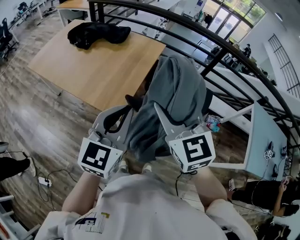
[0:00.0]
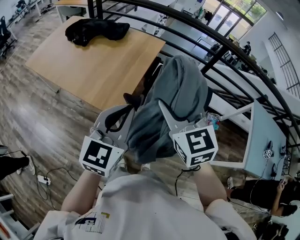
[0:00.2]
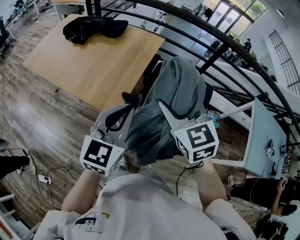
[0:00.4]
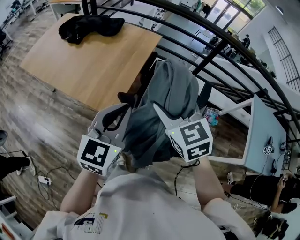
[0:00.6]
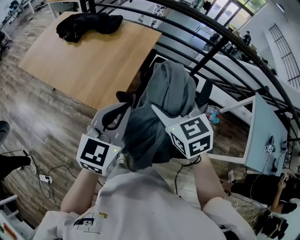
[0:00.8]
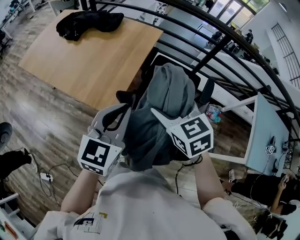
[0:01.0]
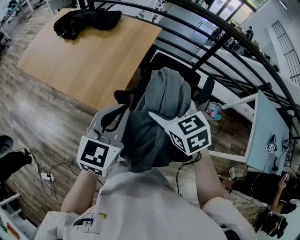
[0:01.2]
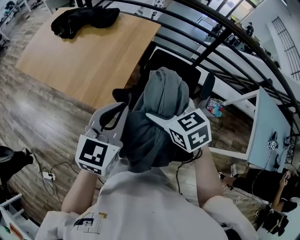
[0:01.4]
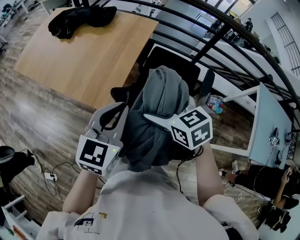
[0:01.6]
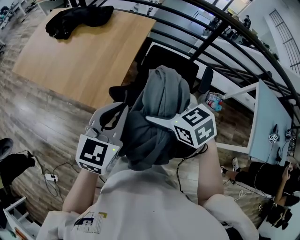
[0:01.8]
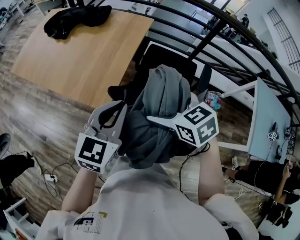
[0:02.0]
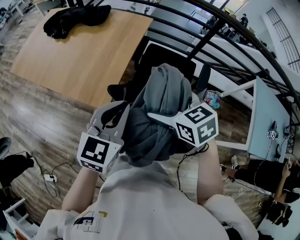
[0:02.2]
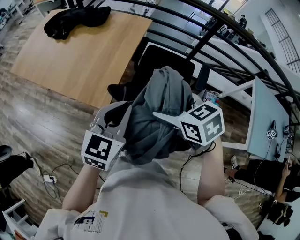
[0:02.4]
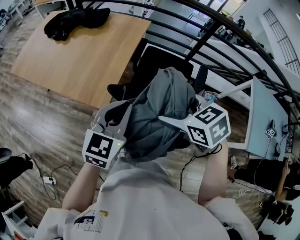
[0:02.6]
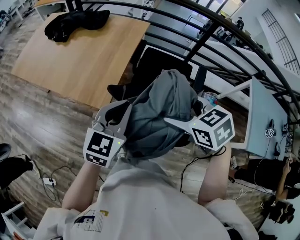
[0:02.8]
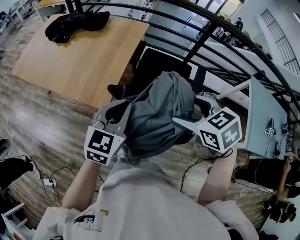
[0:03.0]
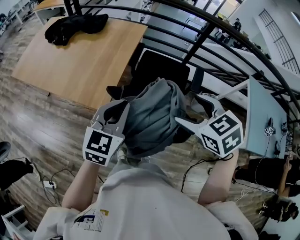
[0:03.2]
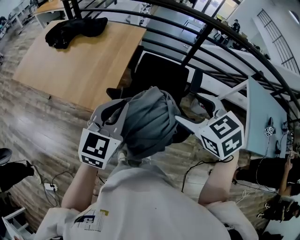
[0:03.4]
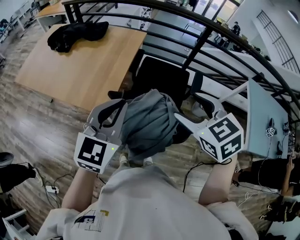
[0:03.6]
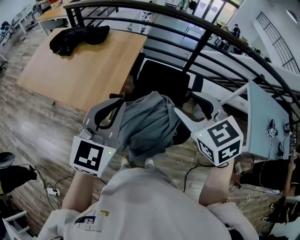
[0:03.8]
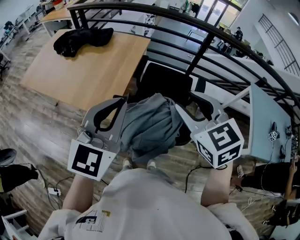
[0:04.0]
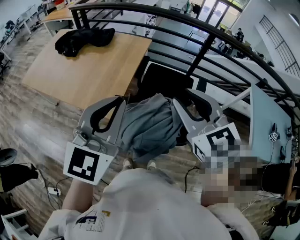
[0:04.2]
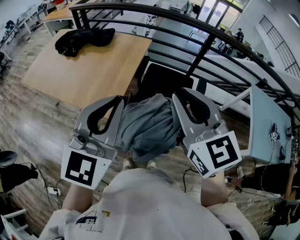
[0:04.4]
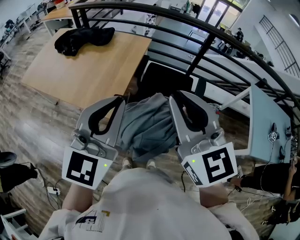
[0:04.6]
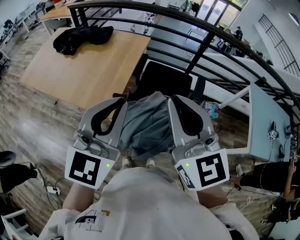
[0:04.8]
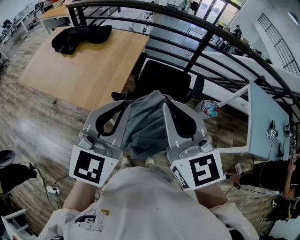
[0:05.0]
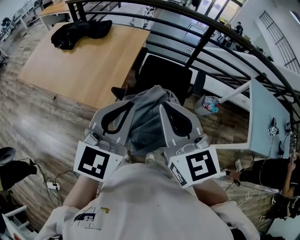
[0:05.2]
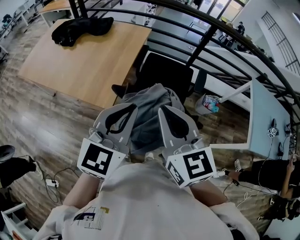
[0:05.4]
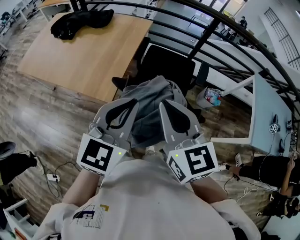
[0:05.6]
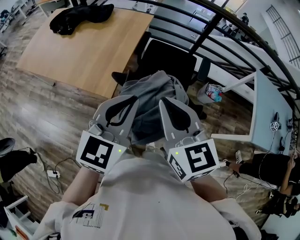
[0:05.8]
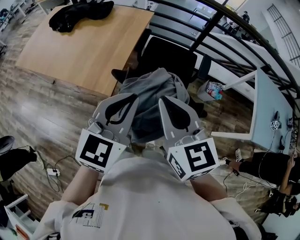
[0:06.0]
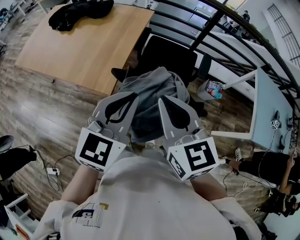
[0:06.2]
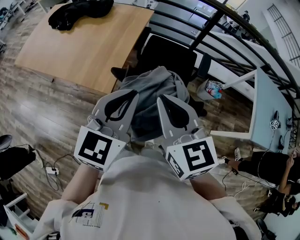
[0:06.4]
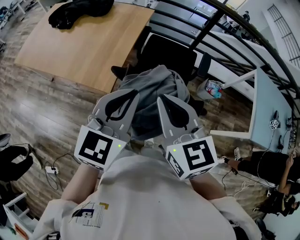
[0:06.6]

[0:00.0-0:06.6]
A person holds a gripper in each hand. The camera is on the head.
0.0 to 1.6 s: The left gripper shifts about 15 cm downward, to the right and forward, while the right gripper travels downward and to the right by roughly 20 cm, changes its angle by roughly 30 degrees, and opens its fingers.
1.6 to 3.2 s: The right gripper shifts approximately 15 cm backward, to the right and upward.
3.2 to 5.0 s: The right gripper travels upward and to the left by roughly 15 cm, points its fingers roughly 40 degrees further upward, and closes up. The left gripper goes about 15 cm upward and backward.
5.0 to 6.6 s: Both grippers travel together downward, approximately 10 cm.

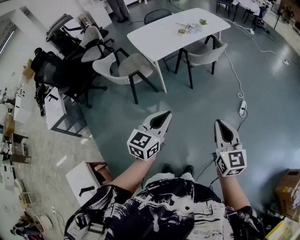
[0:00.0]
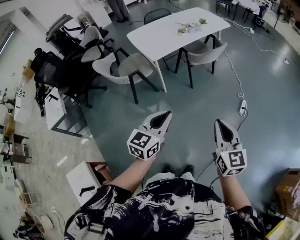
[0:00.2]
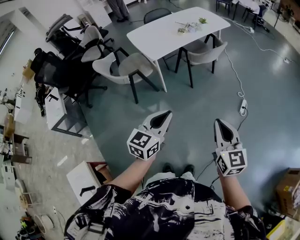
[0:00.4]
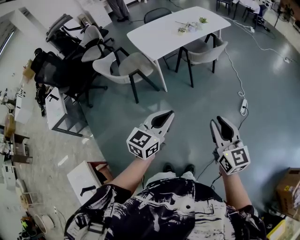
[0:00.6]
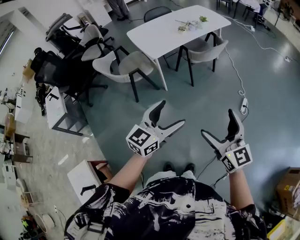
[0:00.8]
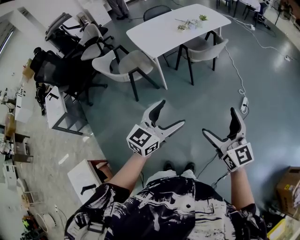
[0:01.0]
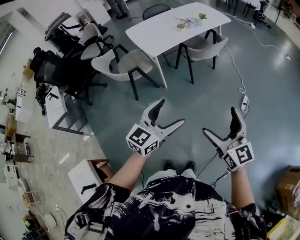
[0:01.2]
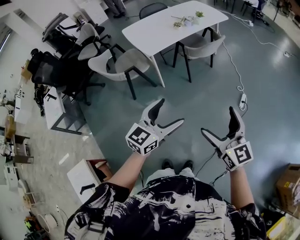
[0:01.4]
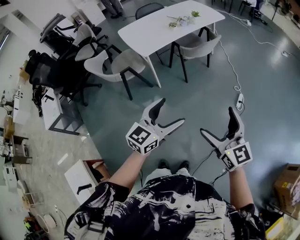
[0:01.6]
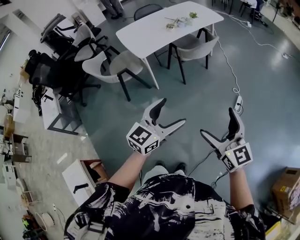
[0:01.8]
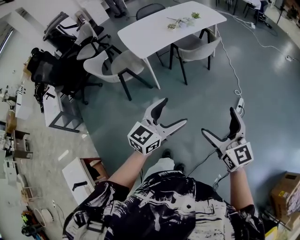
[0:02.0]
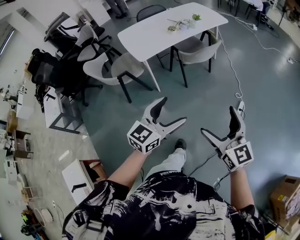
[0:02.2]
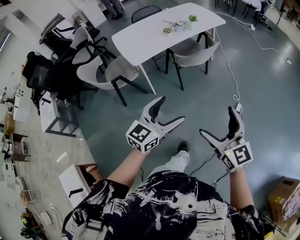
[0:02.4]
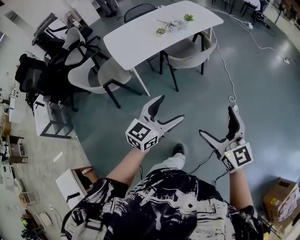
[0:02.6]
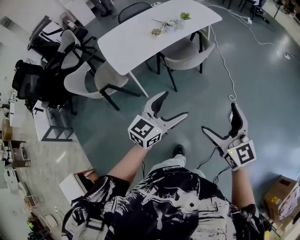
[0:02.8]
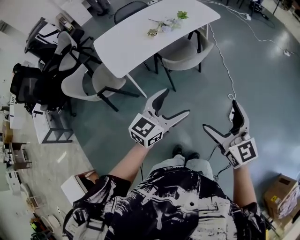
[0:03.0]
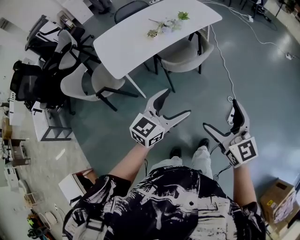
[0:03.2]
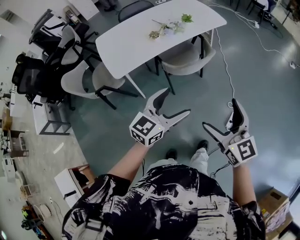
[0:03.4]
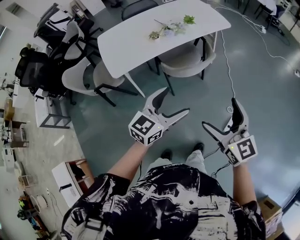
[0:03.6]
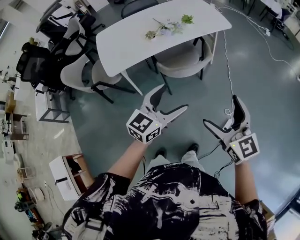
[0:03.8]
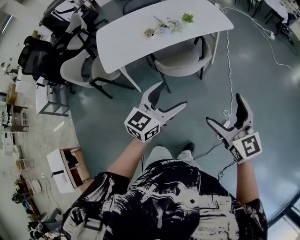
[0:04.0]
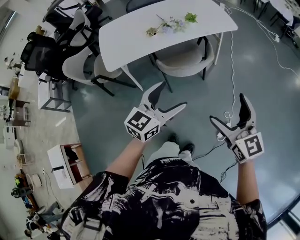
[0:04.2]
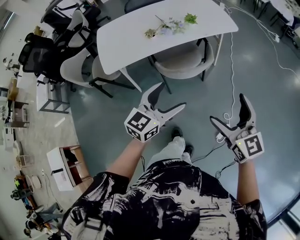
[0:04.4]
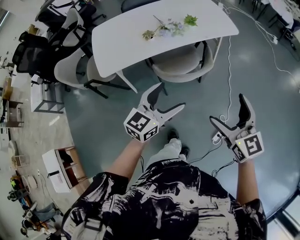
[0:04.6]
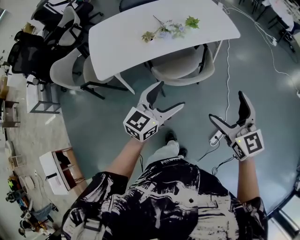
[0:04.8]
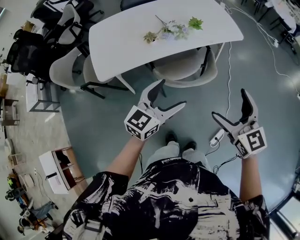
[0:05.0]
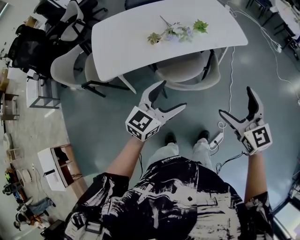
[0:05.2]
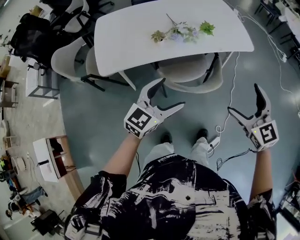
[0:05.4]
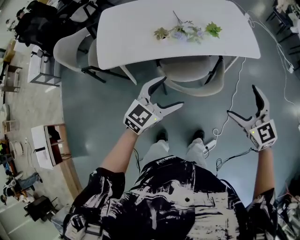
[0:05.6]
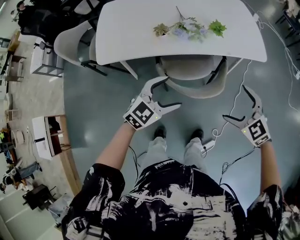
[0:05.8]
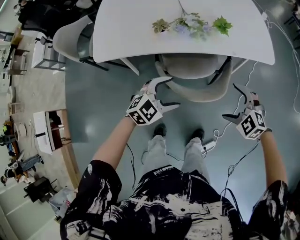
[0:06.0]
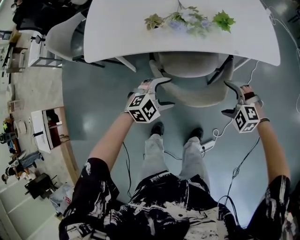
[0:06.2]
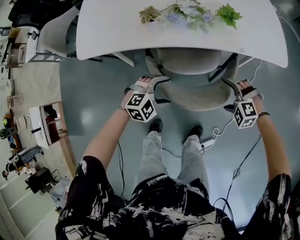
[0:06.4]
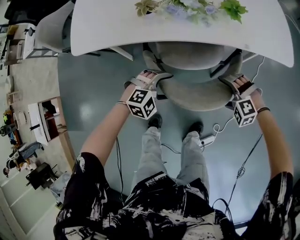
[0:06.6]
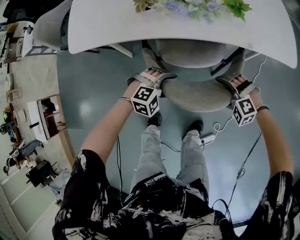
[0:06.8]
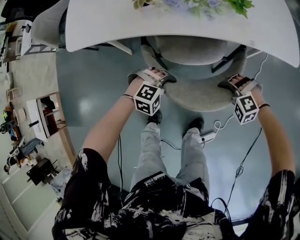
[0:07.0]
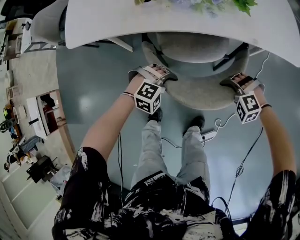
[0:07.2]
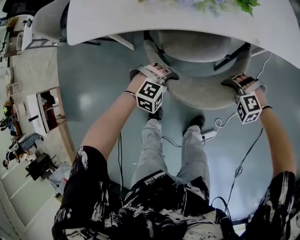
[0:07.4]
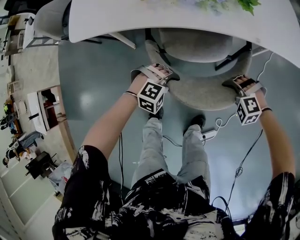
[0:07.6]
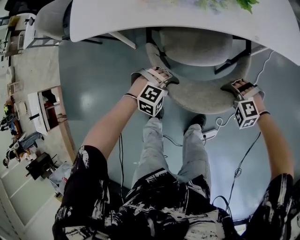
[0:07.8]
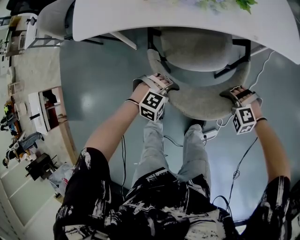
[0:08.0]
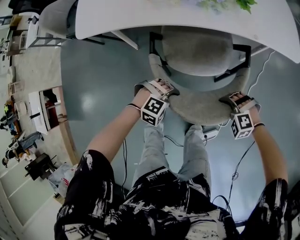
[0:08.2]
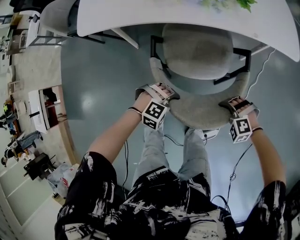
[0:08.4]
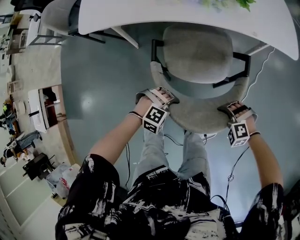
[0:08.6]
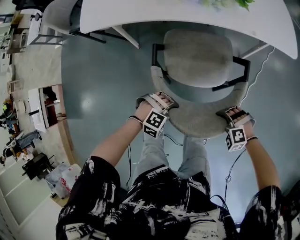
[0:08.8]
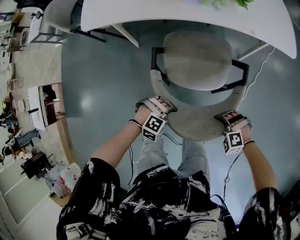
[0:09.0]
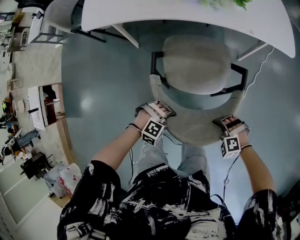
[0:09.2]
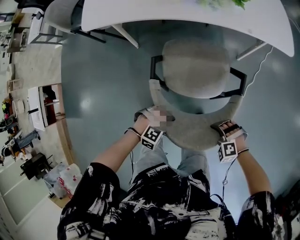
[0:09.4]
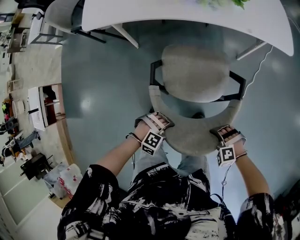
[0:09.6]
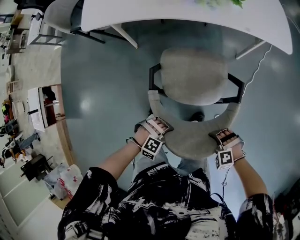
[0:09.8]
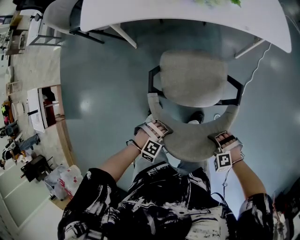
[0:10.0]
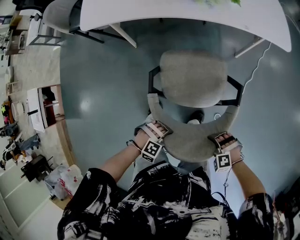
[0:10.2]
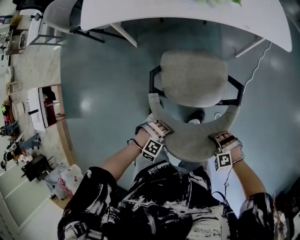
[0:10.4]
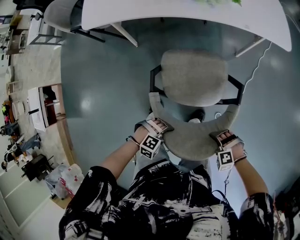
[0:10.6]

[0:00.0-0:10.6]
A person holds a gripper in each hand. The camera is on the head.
0.0 to 1.6 s: The right gripper opens up; the left gripper shifts roughly 10 cm to the right, and opens up.
1.6 to 3.0 s: The left gripper shifts some 35 cm forward and to the right, while the right gripper heads forward, covering some 35 cm.
3.0 to 4.6 s: The grippers both shift forward and to the right by about 30 cm.
4.6 to 6.0 s: The grippers both shift forward and downward by about 30 cm. The left gripper turns by about 30 degrees, while the right gripper angles its fingers downward, by roughly 40 degrees.
6.0 to 7.6 s: The grippers both shift downward by about 25 cm. The right gripper changes its angle by roughly 30 degrees, and closes its fingers. Meanwhile the left gripper swivels some 40 degrees, and closes.
7.6 to 9.0 s: The left gripper changes place by about 20 cm. The right gripper ends up some 20 cm from where it was.
9.0 to 10.6 s: The left gripper moves some 15 cm. Meanwhile the right gripper ends up roughly 15 cm from where it was.

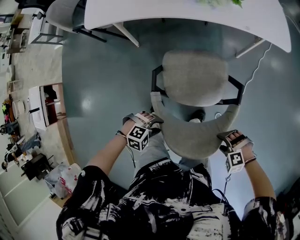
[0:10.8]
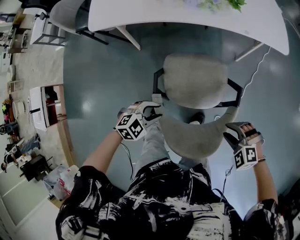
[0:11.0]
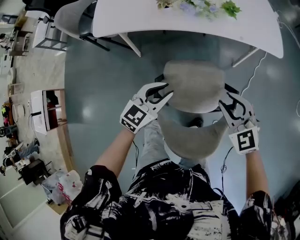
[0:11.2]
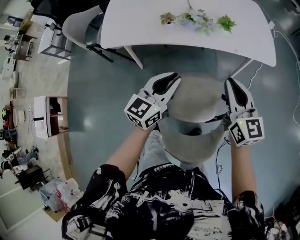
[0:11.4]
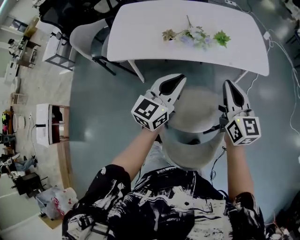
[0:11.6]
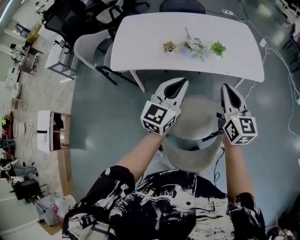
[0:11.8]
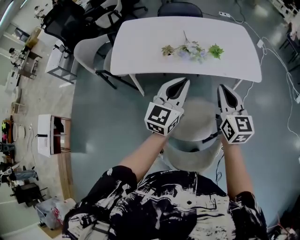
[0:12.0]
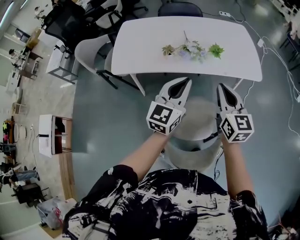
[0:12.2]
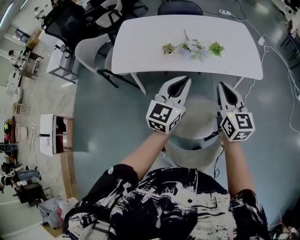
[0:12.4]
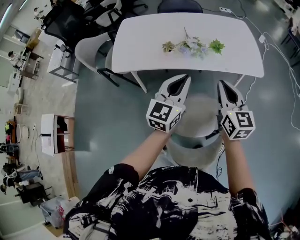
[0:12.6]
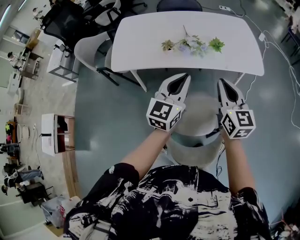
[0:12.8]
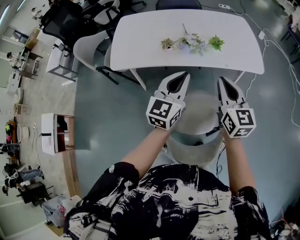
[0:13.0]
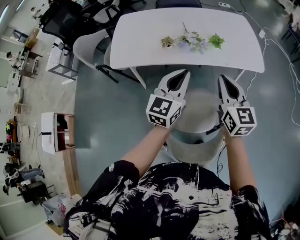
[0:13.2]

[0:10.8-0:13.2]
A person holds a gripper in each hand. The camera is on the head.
10.8 to 12.0 s: The grippers both shift upward by some 40 cm. The right gripper angles its fingers upward, by about 60 degrees, and closes up. The left gripper angles its fingers upward, by approximately 60 degrees, and closes up.
12.0 to 13.2 s: The two grippers keep their place.

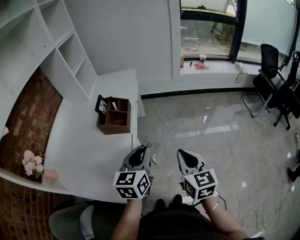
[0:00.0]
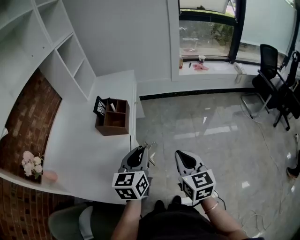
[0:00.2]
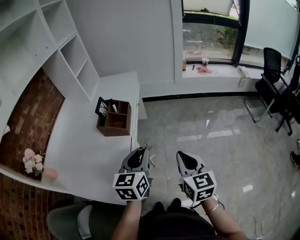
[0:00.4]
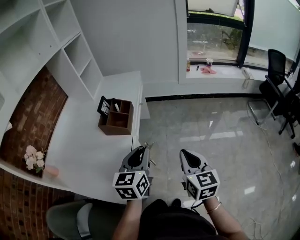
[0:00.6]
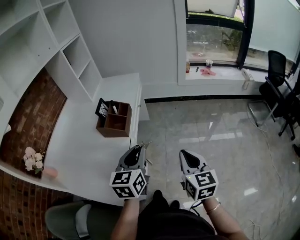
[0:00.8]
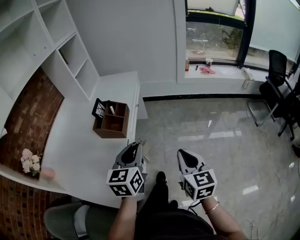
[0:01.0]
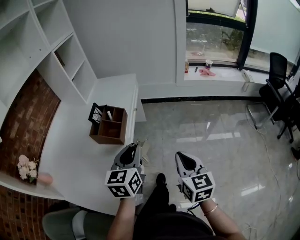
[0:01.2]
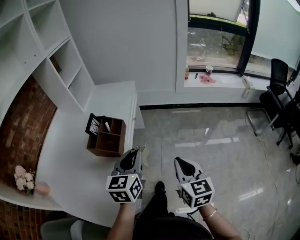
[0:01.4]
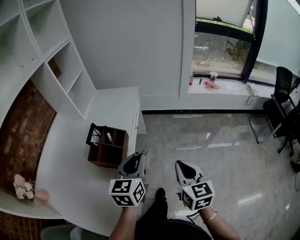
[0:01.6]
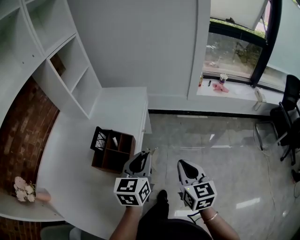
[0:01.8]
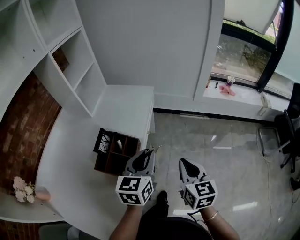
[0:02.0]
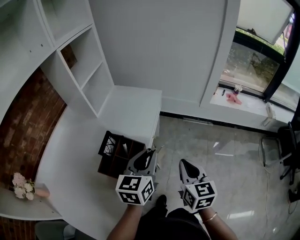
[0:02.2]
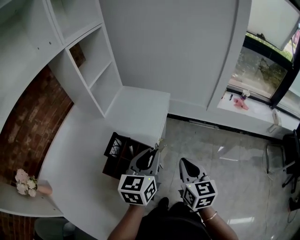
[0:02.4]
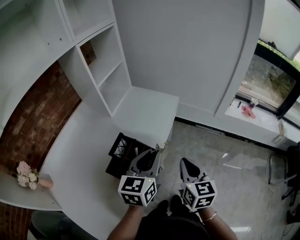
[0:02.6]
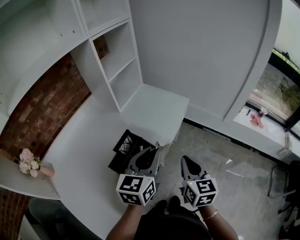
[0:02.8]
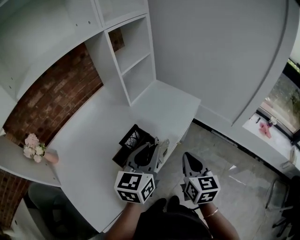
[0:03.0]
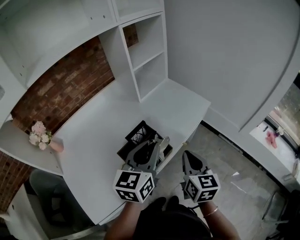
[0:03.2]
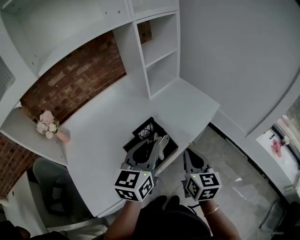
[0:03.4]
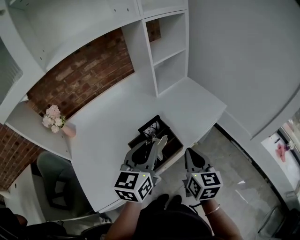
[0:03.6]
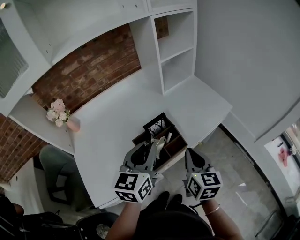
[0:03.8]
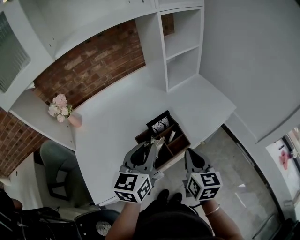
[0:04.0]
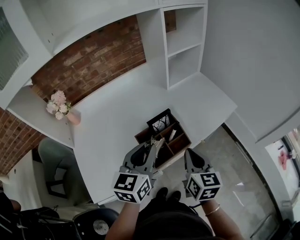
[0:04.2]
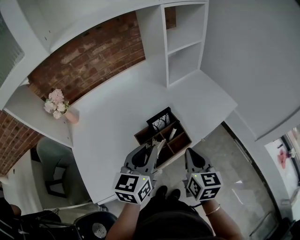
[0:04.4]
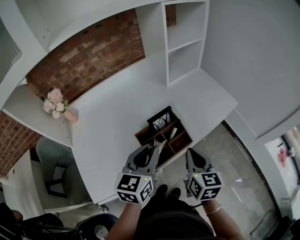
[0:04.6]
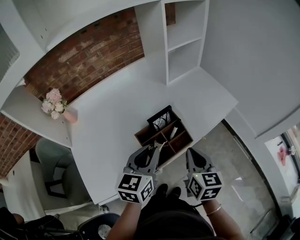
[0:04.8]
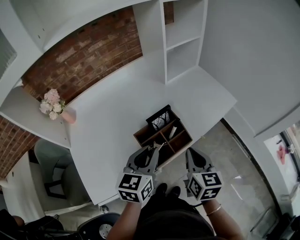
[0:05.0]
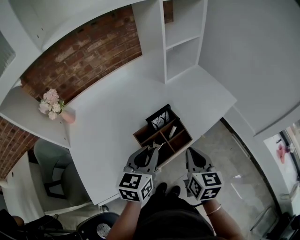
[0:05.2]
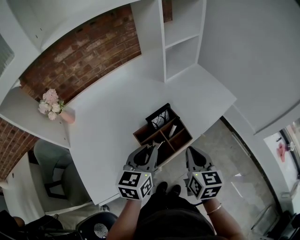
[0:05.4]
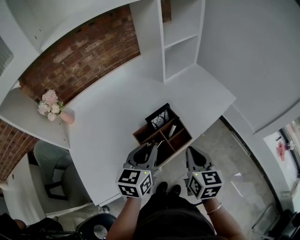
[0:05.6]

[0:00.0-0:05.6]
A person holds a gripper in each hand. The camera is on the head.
0.0 to 1.4 s: The two grippers go roughly 15 cm forward.
1.4 to 2.8 s: Both grippers move forward, some 25 cm.
2.8 to 4.2 s: The left gripper changes place by about 15 cm, and turns by approximately 30 degrees; the right gripper changes place by some 10 cm, and rotates some 30 degrees.
4.2 to 5.6 s: The left gripper heads downward, covering approximately 5 cm.
